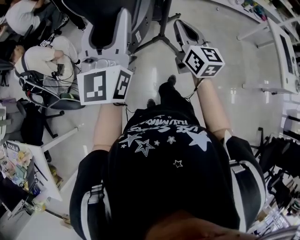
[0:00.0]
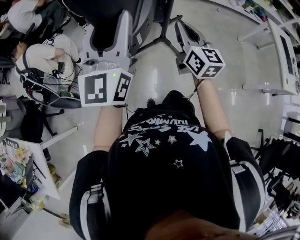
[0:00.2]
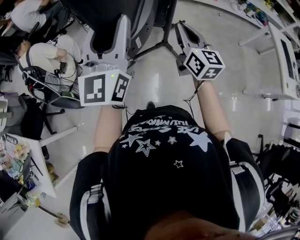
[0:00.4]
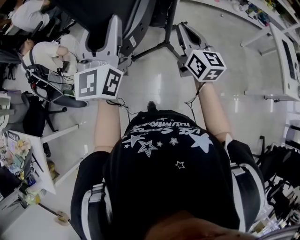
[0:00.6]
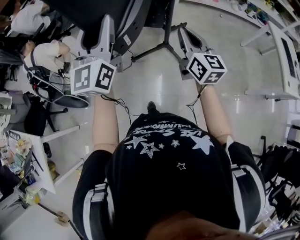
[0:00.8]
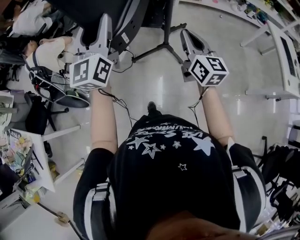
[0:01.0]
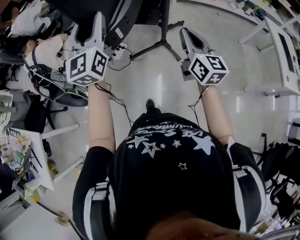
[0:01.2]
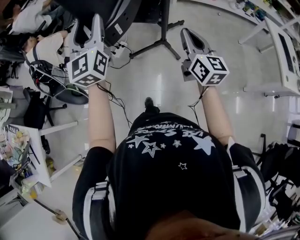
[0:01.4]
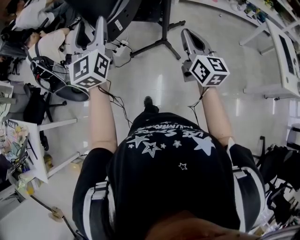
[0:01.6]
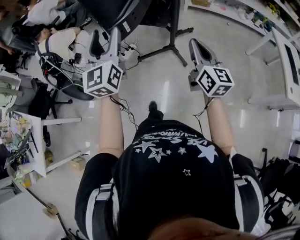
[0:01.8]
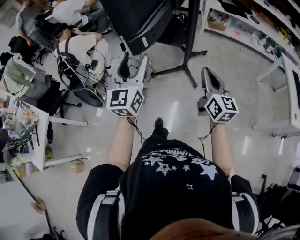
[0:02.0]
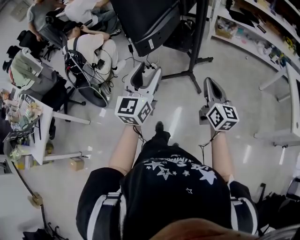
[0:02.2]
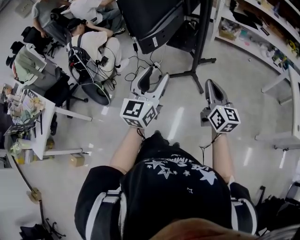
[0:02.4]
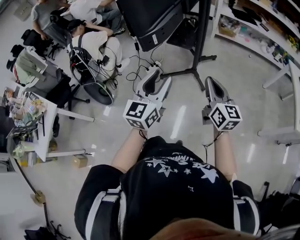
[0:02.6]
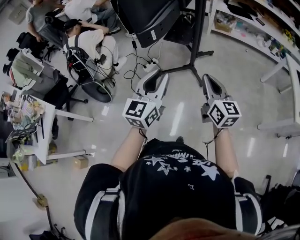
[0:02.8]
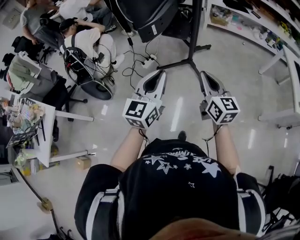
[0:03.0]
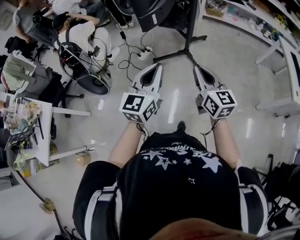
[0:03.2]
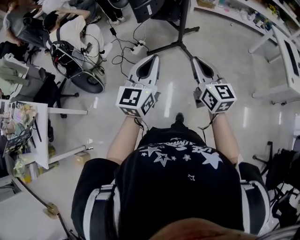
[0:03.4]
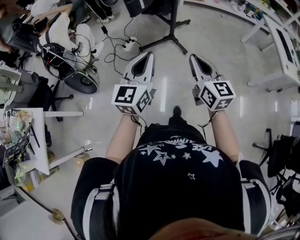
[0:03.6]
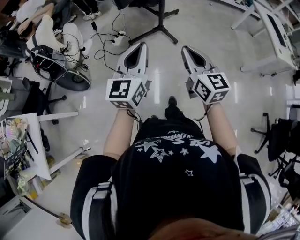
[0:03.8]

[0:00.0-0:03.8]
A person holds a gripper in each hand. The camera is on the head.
0:00.0 to 0:01.2: The right gripper heads backward and to the right, covering approximately 15 cm.
0:01.2 to 0:02.6: The right gripper moves backward, about 15 cm. The left gripper shifts approximately 25 cm backward, to the right and downward.
0:02.6 to 0:03.8: The two grippers go roughly 15 cm backward and to the left. The left gripper closes up.

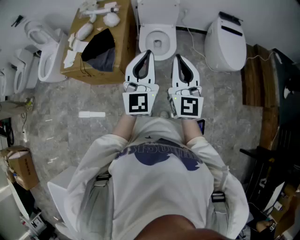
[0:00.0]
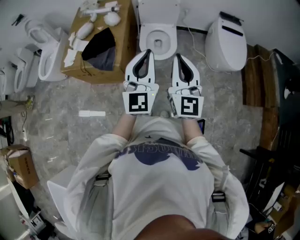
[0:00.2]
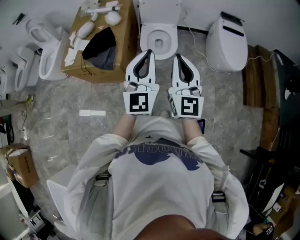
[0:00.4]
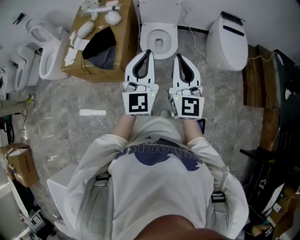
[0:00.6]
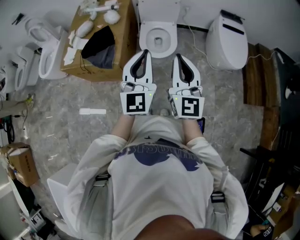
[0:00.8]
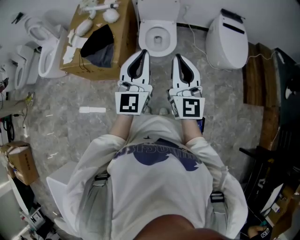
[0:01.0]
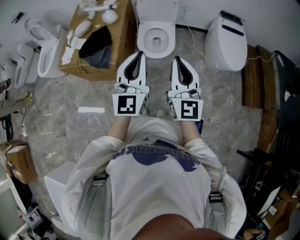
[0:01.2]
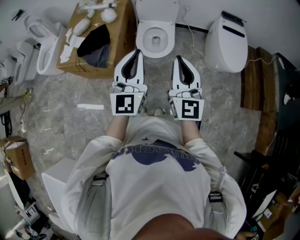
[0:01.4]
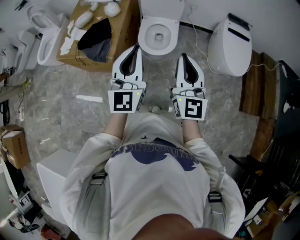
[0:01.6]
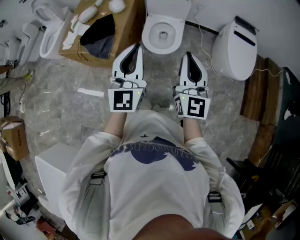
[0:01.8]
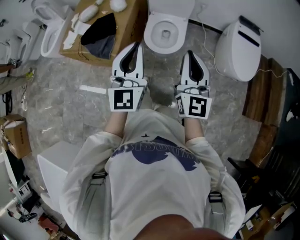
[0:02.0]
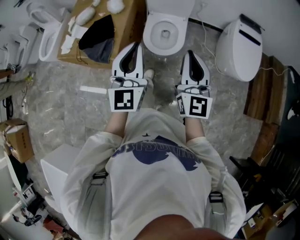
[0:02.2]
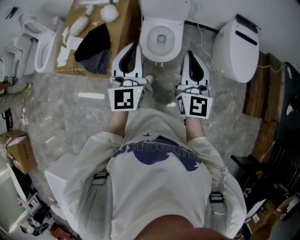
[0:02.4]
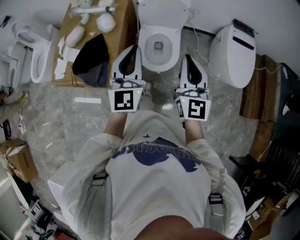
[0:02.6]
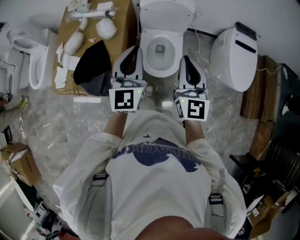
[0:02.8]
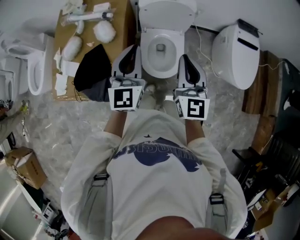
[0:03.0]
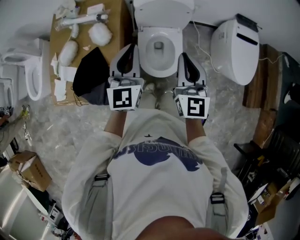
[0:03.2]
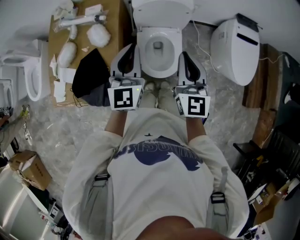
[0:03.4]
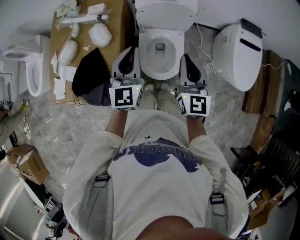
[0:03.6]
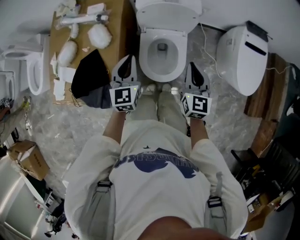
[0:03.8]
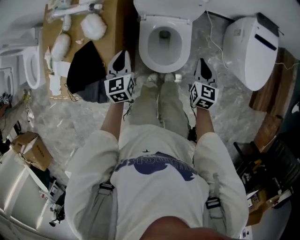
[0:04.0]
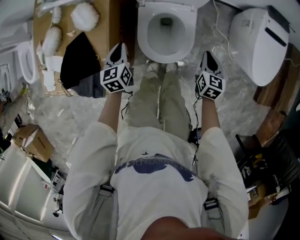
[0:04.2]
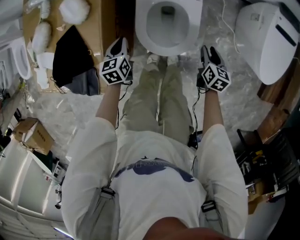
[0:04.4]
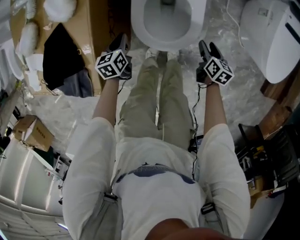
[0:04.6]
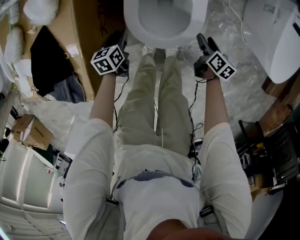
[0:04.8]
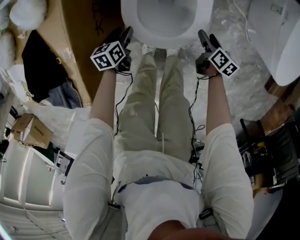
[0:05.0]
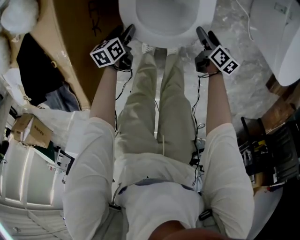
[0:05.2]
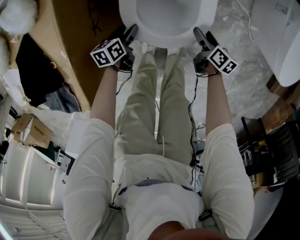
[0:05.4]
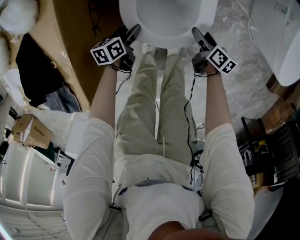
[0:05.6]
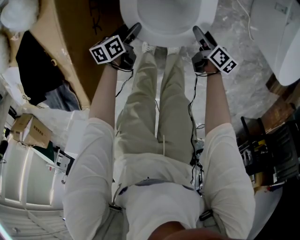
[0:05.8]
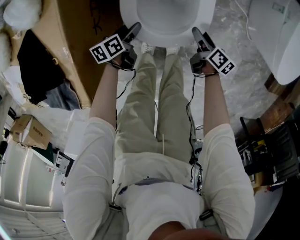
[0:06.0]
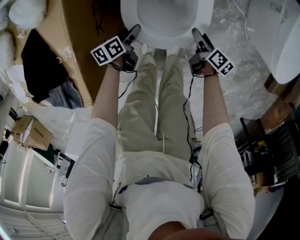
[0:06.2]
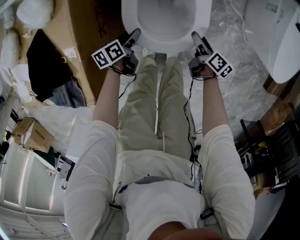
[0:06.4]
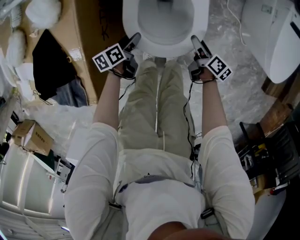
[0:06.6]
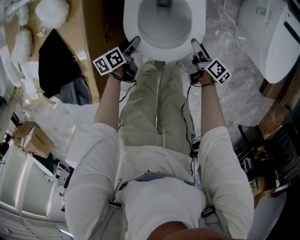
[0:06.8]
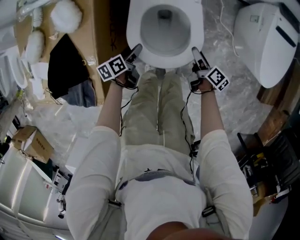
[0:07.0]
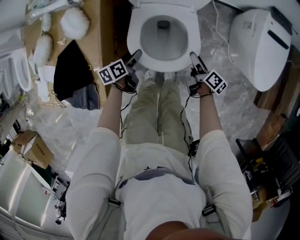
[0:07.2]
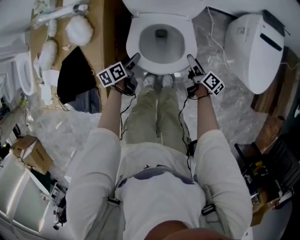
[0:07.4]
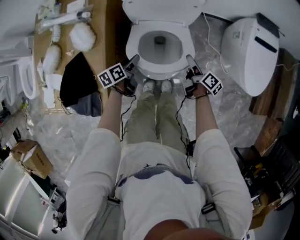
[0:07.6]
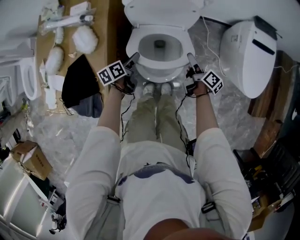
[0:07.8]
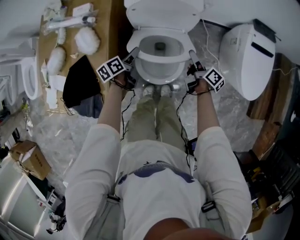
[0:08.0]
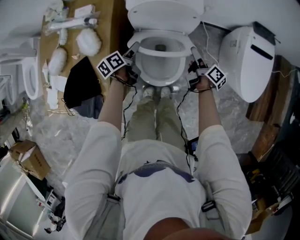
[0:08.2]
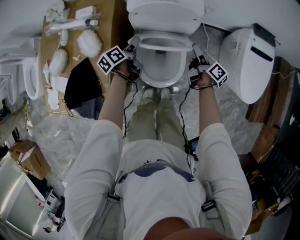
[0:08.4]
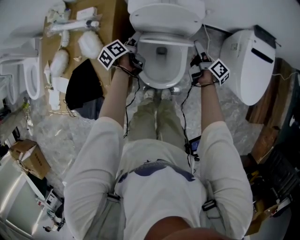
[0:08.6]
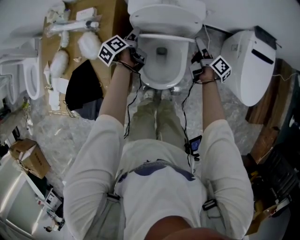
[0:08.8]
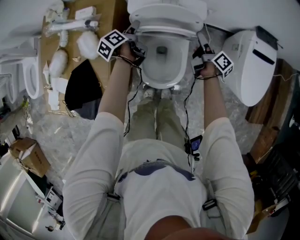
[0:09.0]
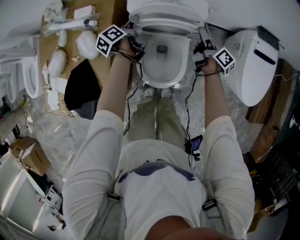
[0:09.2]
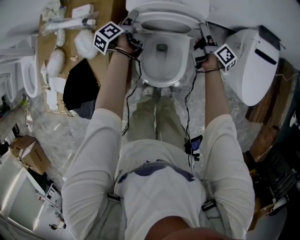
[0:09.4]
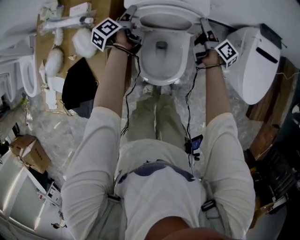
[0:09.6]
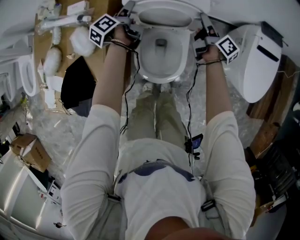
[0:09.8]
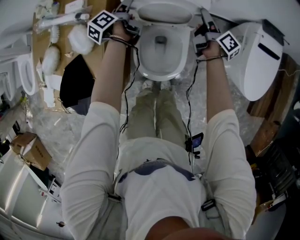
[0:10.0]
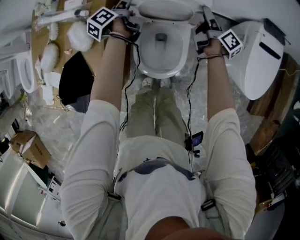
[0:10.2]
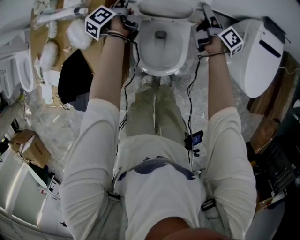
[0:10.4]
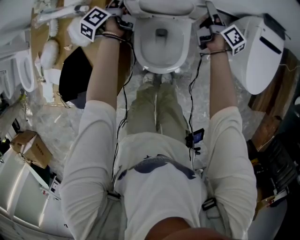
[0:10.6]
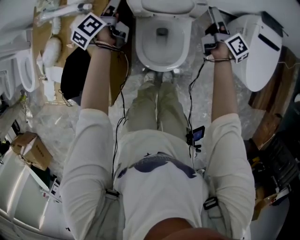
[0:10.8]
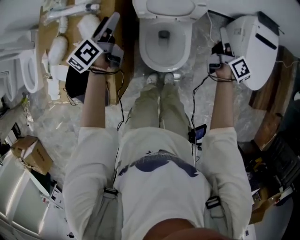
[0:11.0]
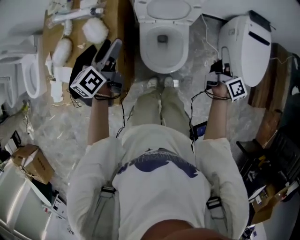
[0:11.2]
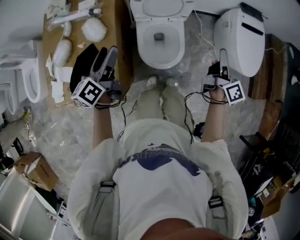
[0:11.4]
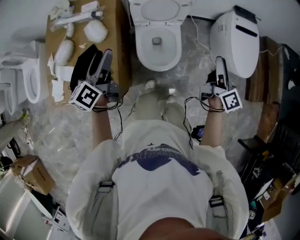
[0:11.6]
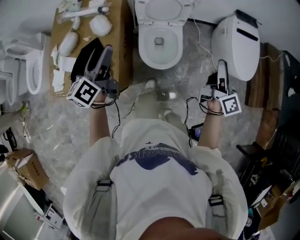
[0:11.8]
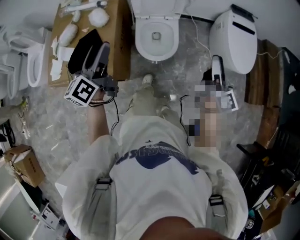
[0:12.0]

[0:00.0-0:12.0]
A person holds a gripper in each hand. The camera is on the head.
0:00.0 to 0:01.6: The right gripper travels to the right by approximately 5 cm.
0:01.6 to 0:03.0: The grippers both shift forward by roughly 35 cm.
0:03.0 to 0:04.4: Both grippers travel together downward, about 40 cm. The right gripper tips its fingers downward by roughly 40 degrees, and opens its fingers. Meanwhile the left gripper angles its fingers downward, by about 40 degrees.
0:04.4 to 0:06.0: The grippers both shift downward by about 20 cm. The left gripper changes its angle by approximately 40 degrees, and opens its fingers; the right gripper turns by about 30 degrees, and opens up.
0:06.0 to 0:07.6: The two grippers go roughly 25 cm upward.
0:07.6 to 0:09.0: Both grippers travel together forward and upward, some 20 cm. The left gripper swivels about 30 degrees.
0:09.0 to 0:10.4: The grippers both shift forward by some 5 cm.
0:10.4 to 0:12.0: Both grippers are carried backward, approximately 50 cm. Both grippers move upward, roughly 30 cm. The right gripper changes its angle by some 30 degrees. The left gripper rotates some 40 degrees.

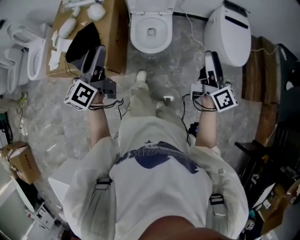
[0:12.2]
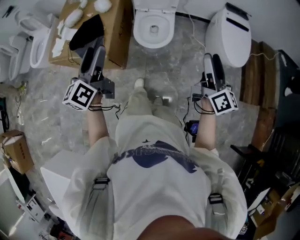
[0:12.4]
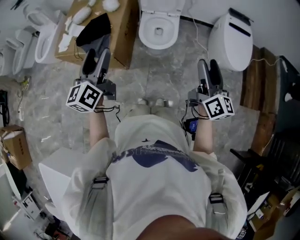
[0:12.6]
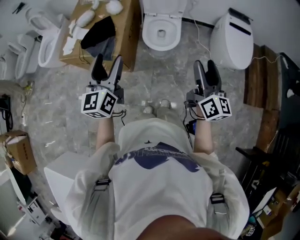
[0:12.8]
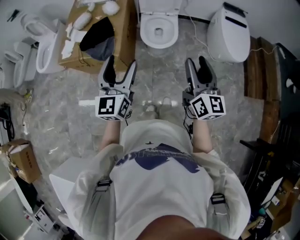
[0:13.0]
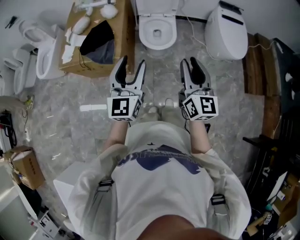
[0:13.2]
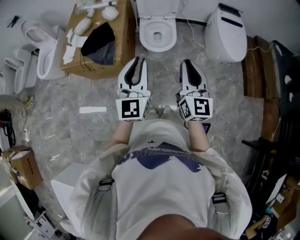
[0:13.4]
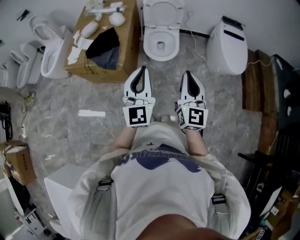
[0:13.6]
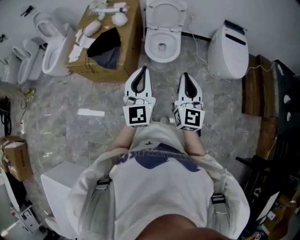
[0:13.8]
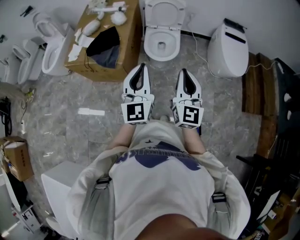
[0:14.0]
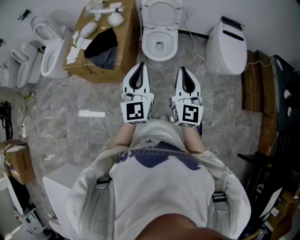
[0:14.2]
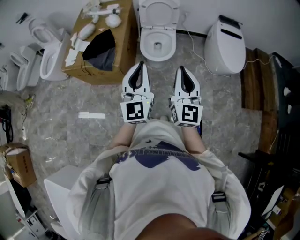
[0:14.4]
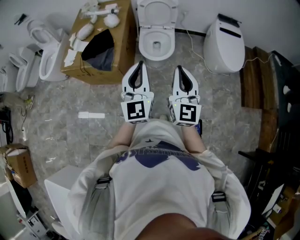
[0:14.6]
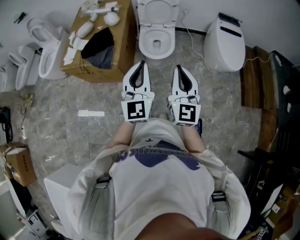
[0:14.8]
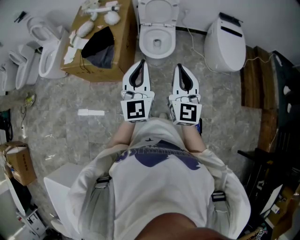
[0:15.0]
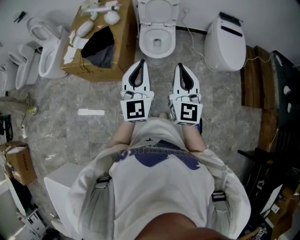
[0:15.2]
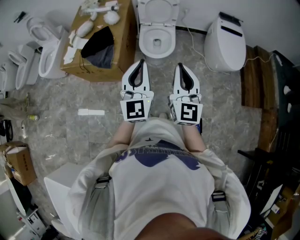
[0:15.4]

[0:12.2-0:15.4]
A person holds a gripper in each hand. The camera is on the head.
0:12.2 to 0:13.8: The left gripper heads backward and to the right, covering roughly 20 cm, twists approximately 40 degrees clockwise, seen from behind, and closes its fingers. Meanwhile the right gripper heads backward and to the left, covering roughly 25 cm, rolls counterclockwise, seen from behind, by about 50 degrees, and closes its fingers.
0:13.8 to 0:15.4: The grippers stay close to where they were, moving slightly.

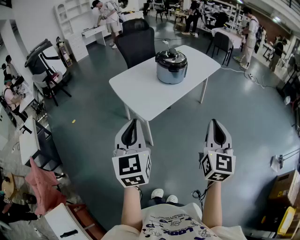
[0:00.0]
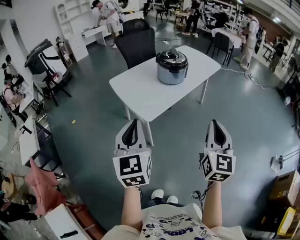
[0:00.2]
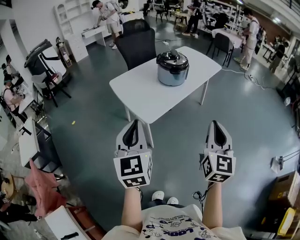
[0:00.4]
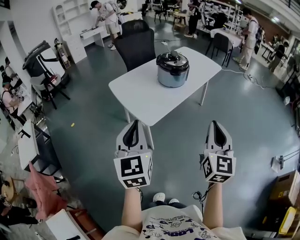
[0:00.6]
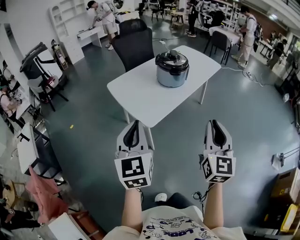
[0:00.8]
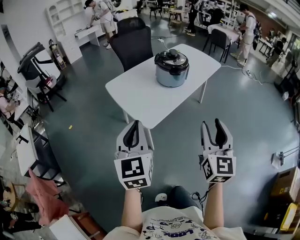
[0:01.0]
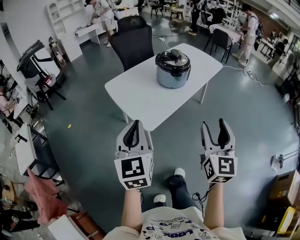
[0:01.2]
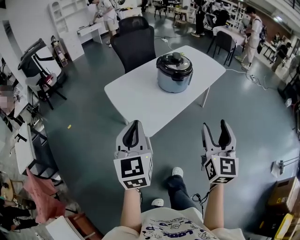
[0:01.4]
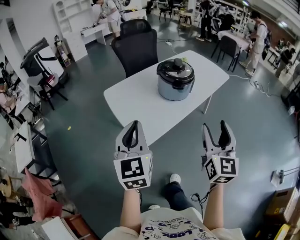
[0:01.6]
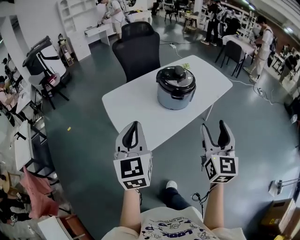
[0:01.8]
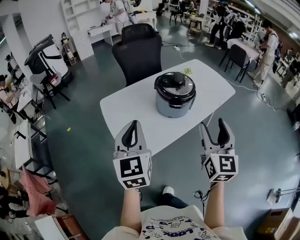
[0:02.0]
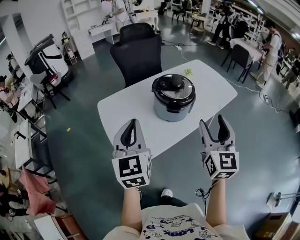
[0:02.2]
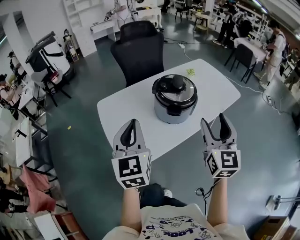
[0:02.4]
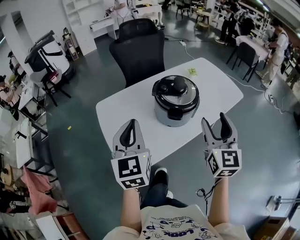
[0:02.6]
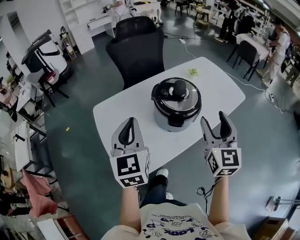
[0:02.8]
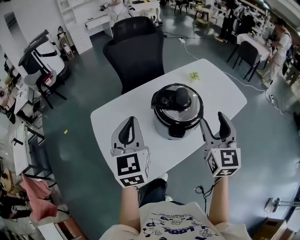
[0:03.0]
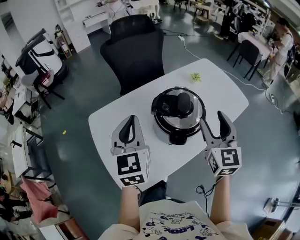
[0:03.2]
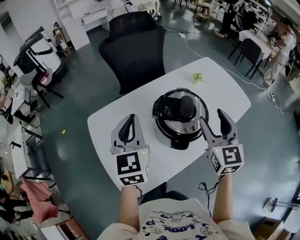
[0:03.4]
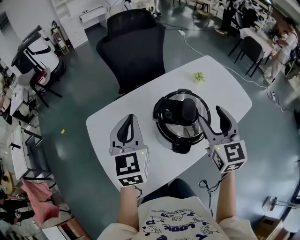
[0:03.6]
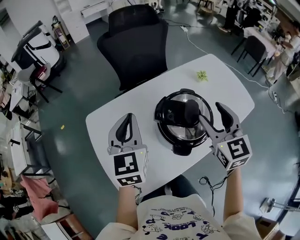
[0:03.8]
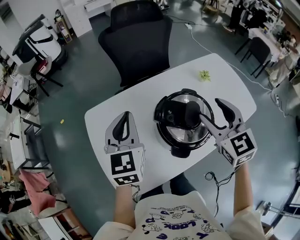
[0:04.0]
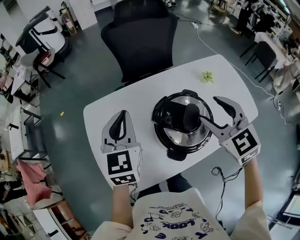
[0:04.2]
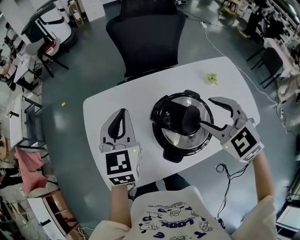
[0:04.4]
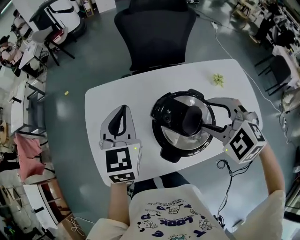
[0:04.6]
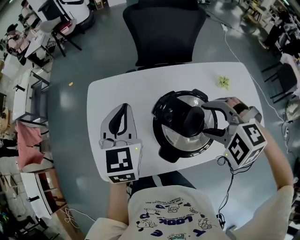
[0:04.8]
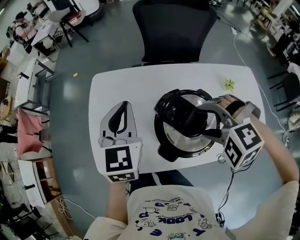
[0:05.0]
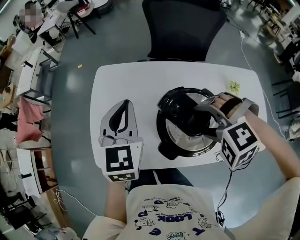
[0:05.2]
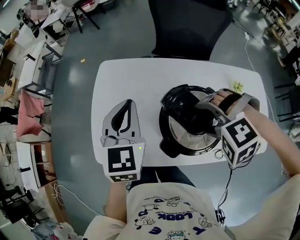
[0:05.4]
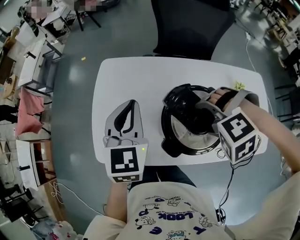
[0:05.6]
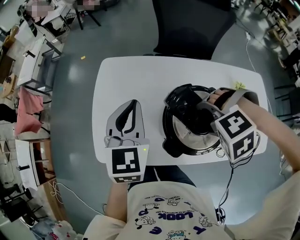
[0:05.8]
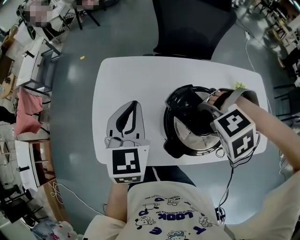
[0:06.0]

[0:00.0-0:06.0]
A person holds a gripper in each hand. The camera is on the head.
0:00.0 to 0:01.6: Both grippers travel together forward, about 25 cm. The right gripper opens up.
0:01.6 to 0:03.0: The two grippers go approximately 40 cm forward.
0:03.0 to 0:04.4: The left gripper changes place by some 15 cm. The right gripper moves about 20 cm, and angles its fingers downward, by roughly 40 degrees.
0:04.4 to 0:06.0: The right gripper is displaced downward by some 10 cm, and tilts its fingers roughly 50 degrees downward. The left gripper moves roughly 5 cm.
